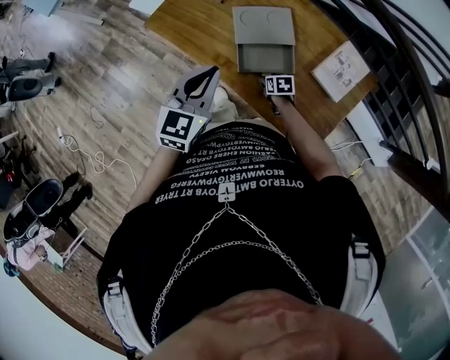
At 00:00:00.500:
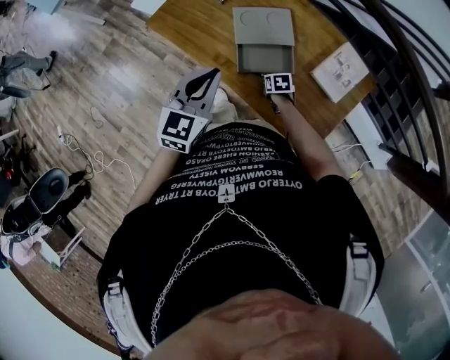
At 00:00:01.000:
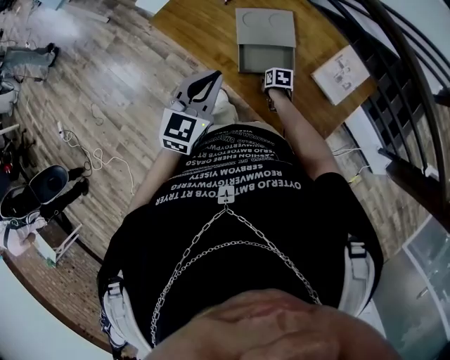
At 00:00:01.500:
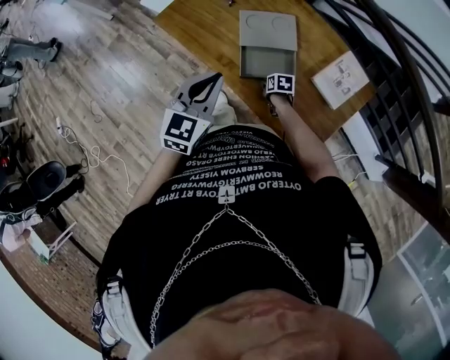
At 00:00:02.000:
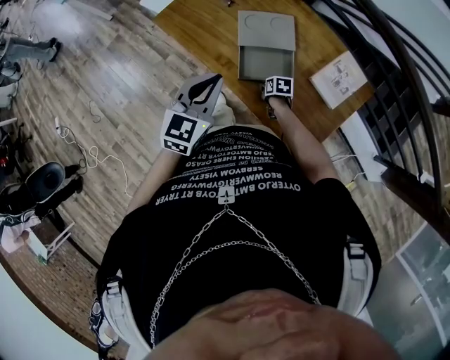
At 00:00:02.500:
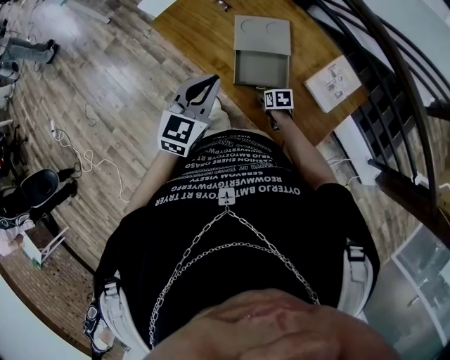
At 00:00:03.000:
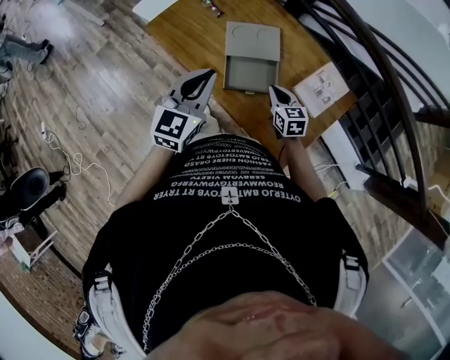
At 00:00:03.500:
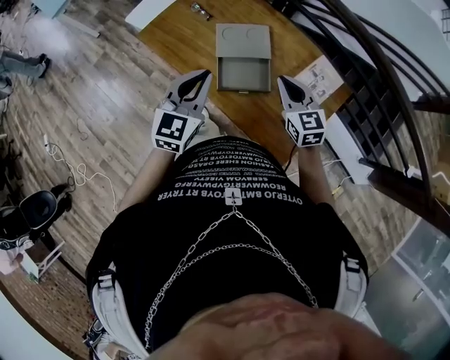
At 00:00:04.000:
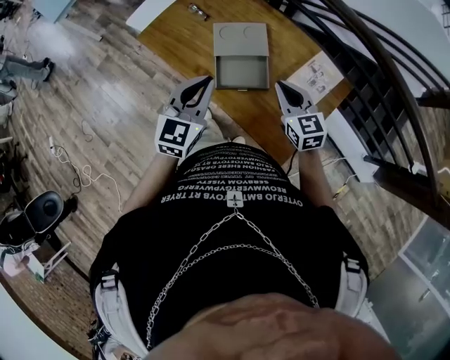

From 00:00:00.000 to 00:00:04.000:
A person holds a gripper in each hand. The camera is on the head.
From 00:00:00.000 to 00:00:02.000: The grippers move only a little.
From 00:00:02.000 to 00:00:04.000: The right gripper goes some 35 cm upward, tilts its fingers roughly 40 degrees upward, and closes up; the left gripper shifts roughly 5 cm to the right.

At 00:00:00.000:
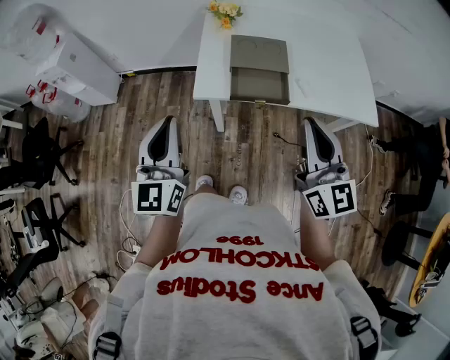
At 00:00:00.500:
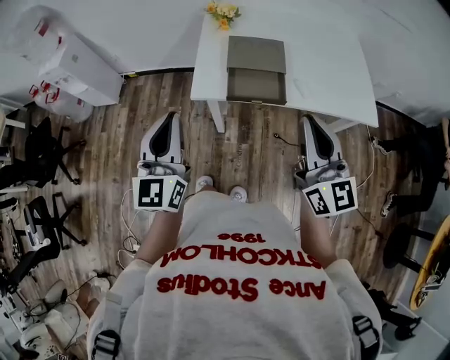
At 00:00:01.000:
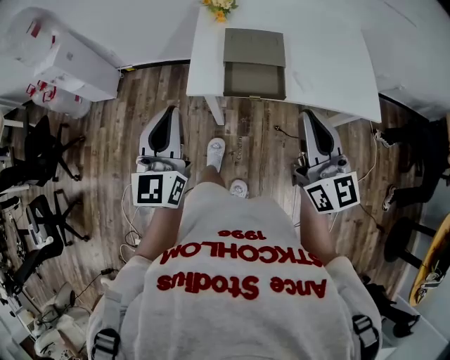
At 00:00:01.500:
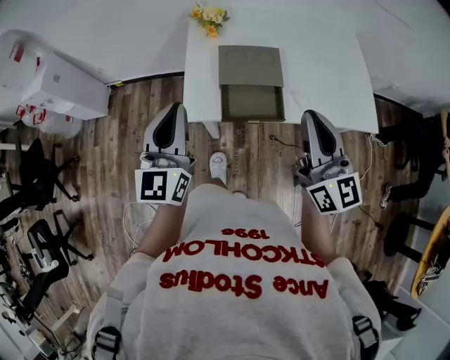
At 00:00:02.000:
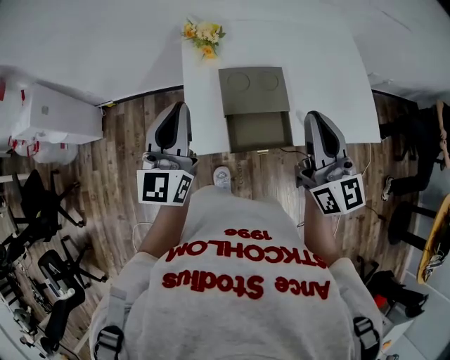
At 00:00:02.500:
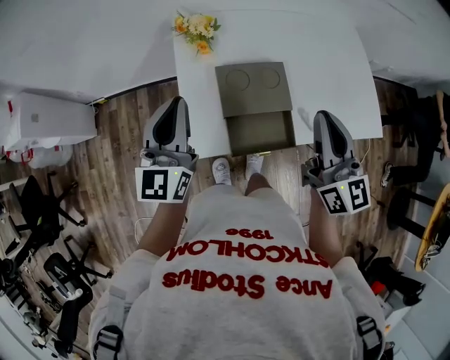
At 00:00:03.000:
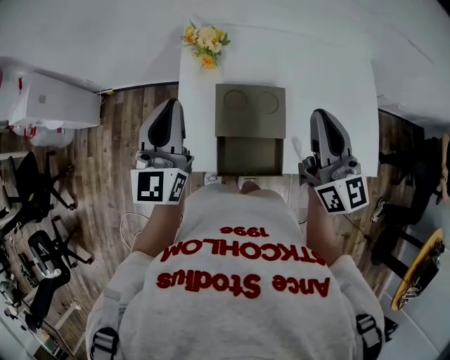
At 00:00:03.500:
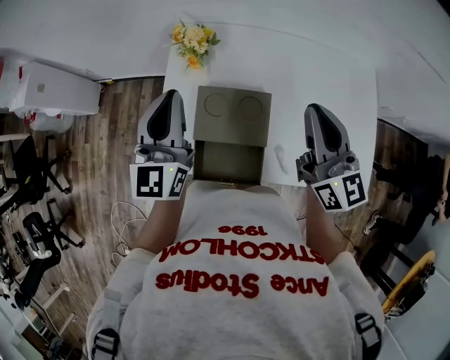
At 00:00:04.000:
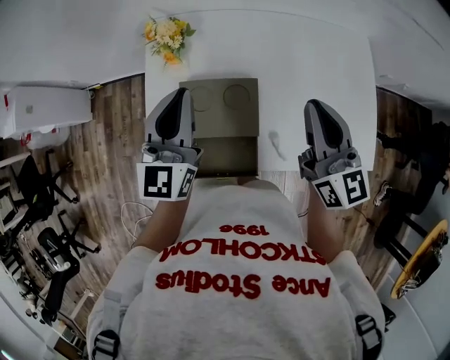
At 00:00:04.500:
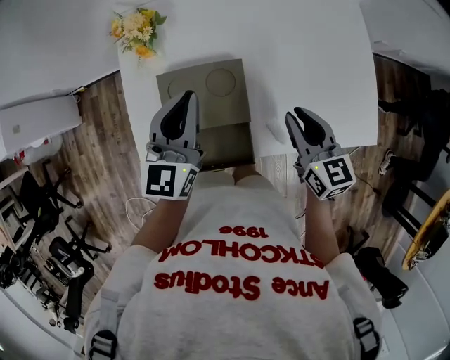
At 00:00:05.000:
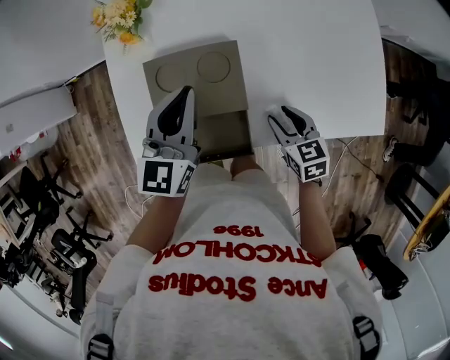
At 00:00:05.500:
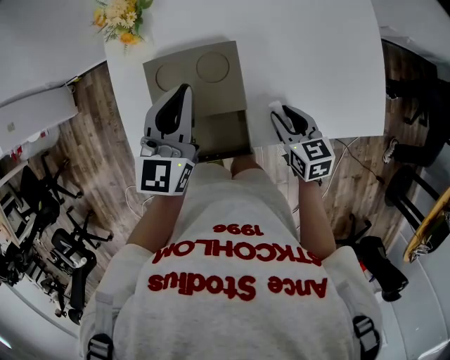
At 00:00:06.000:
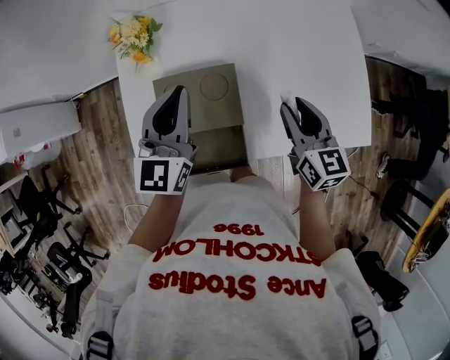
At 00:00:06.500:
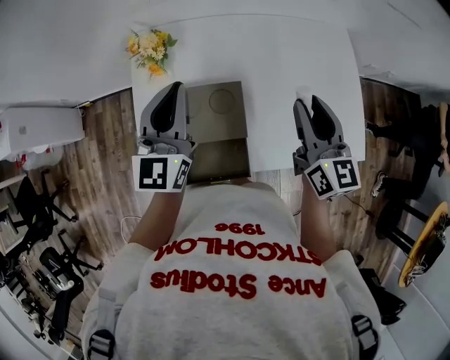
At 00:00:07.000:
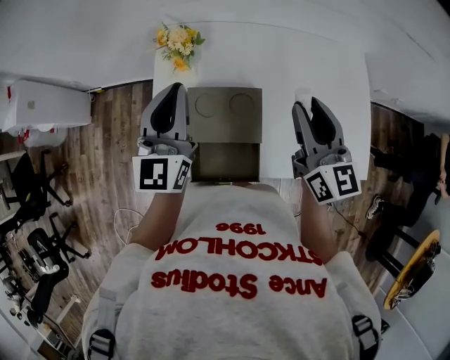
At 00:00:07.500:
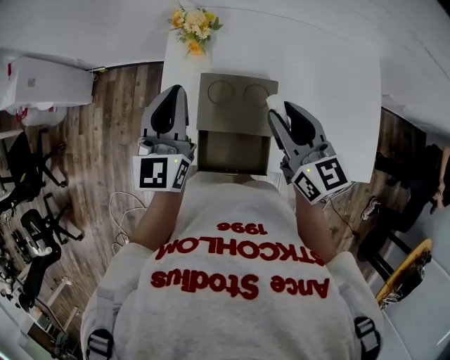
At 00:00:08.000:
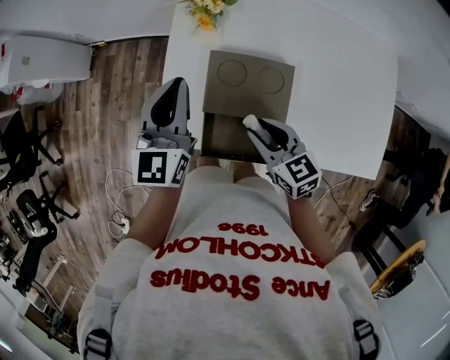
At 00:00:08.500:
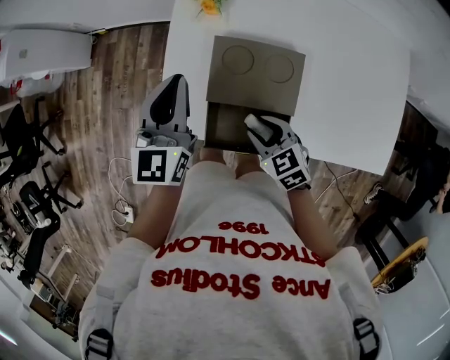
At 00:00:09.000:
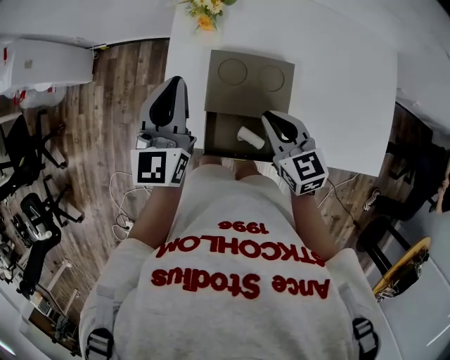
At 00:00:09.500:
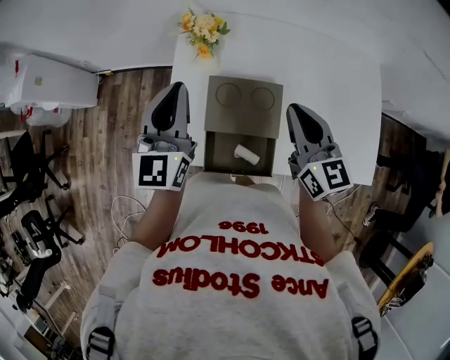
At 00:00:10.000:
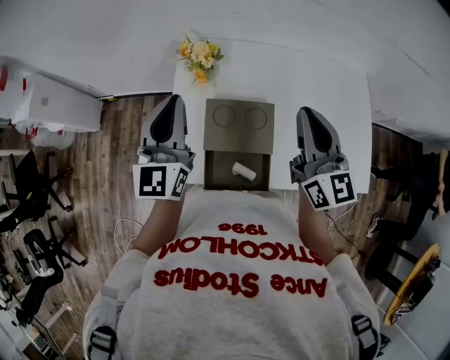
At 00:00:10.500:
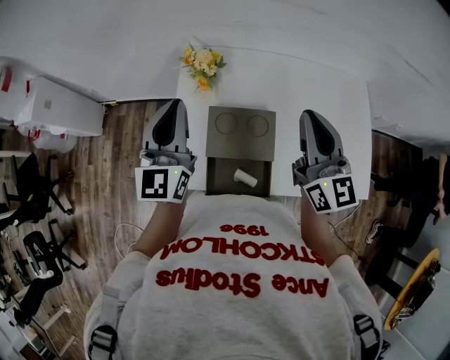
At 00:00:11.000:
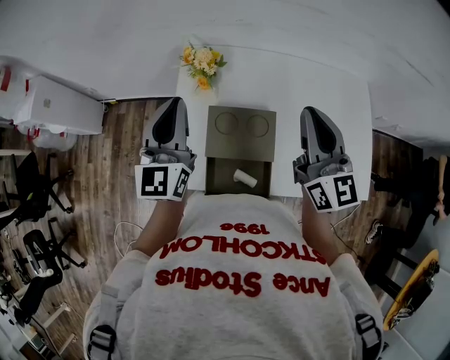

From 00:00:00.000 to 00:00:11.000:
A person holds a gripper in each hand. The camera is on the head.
From 00:00:00.000 to 00:00:02.000: Both grippers travel together forward, roughly 20 cm.
From 00:00:02.000 to 00:00:03.500: Both grippers move forward and to the right, approximately 15 cm.
From 00:00:03.500 to 00:00:05.500: The right gripper is displaced downward by some 30 cm, tips its fingers downward by about 50 degrees, and opens. Meanwhile the left gripper travels downward and to the right by approximately 15 cm, and rotates roughly 30 degrees.
From 00:00:05.500 to 00:00:07.500: The left gripper is displaced to the left and upward by some 15 cm, and rotates approximately 20 degrees. The right gripper travels upward, forward and to the left by roughly 25 cm, and rotates some 30 degrees.
From 00:00:07.500 to 00:00:09.000: The right gripper travels downward and to the left by roughly 10 cm, and closes its fingers.
From 00:00:09.000 to 00:00:11.000: The right gripper moves upward, some 20 cm, and tilts its fingers about 30 degrees upward, while the left gripper is displaced upward by about 10 cm.

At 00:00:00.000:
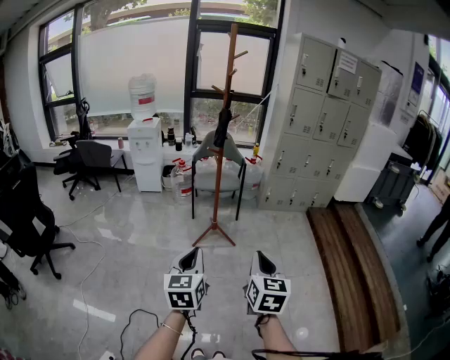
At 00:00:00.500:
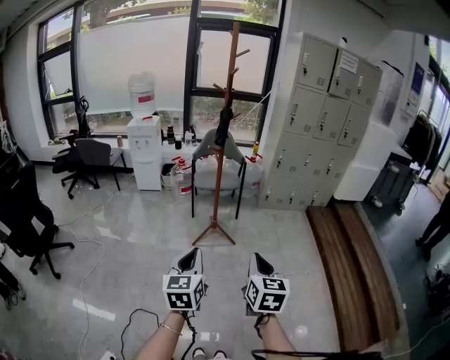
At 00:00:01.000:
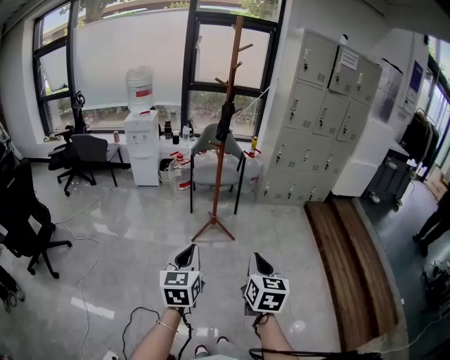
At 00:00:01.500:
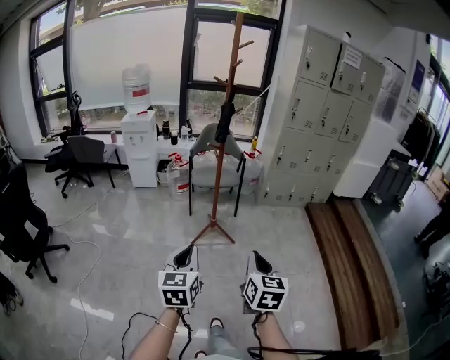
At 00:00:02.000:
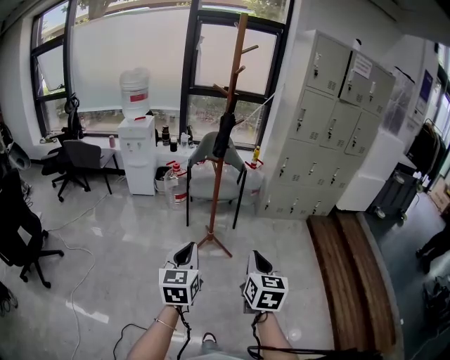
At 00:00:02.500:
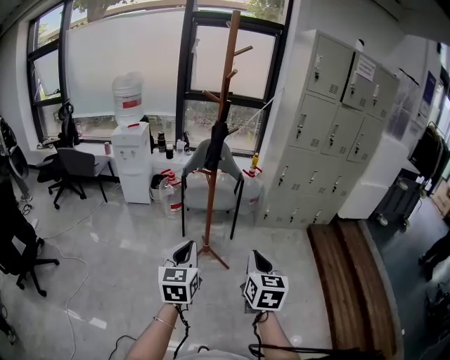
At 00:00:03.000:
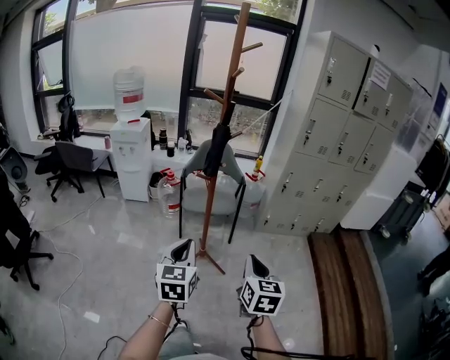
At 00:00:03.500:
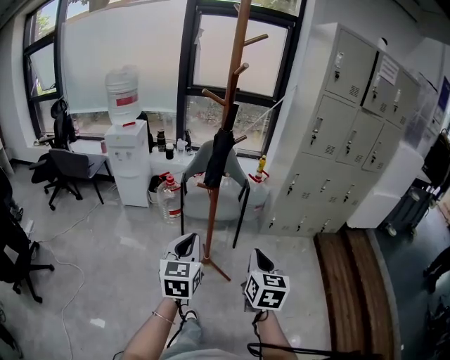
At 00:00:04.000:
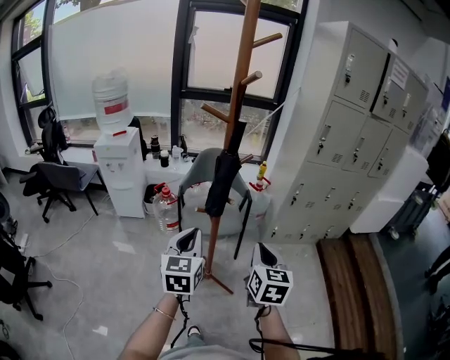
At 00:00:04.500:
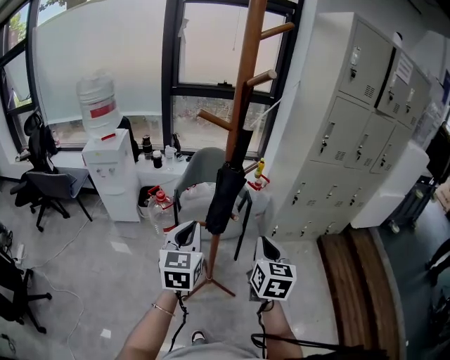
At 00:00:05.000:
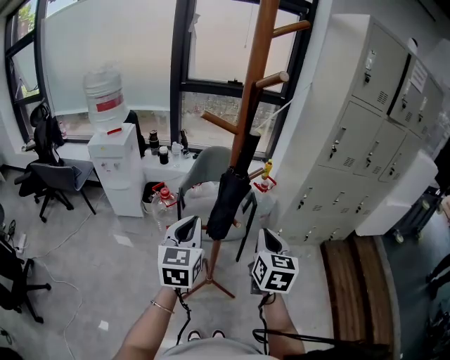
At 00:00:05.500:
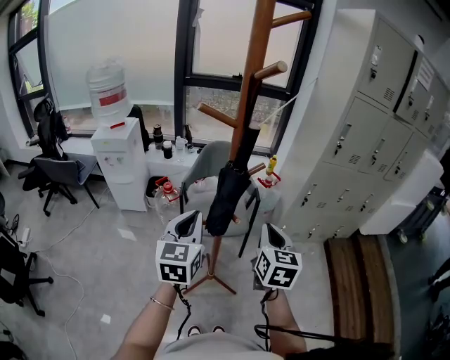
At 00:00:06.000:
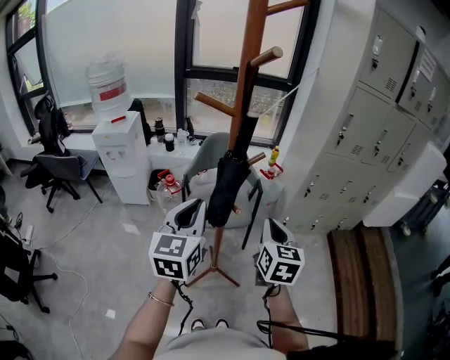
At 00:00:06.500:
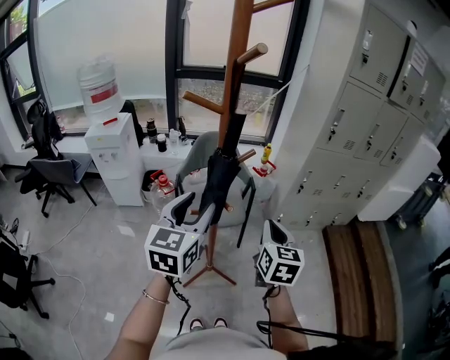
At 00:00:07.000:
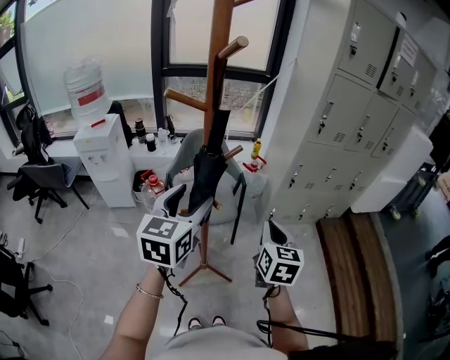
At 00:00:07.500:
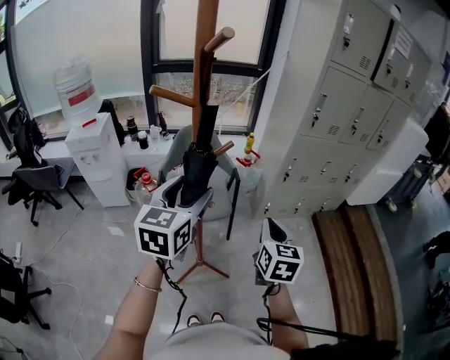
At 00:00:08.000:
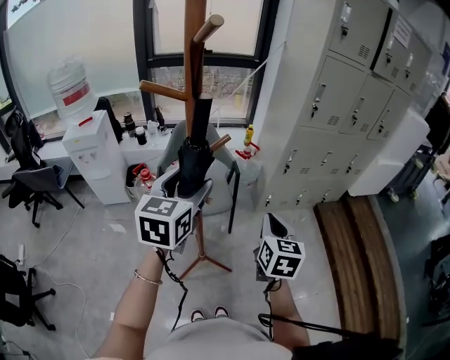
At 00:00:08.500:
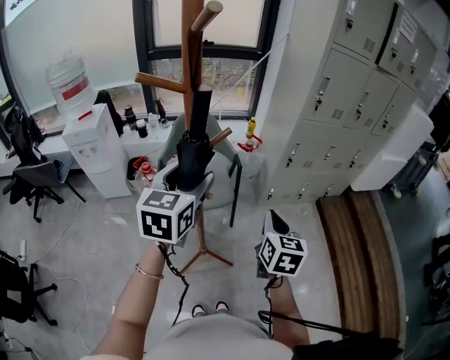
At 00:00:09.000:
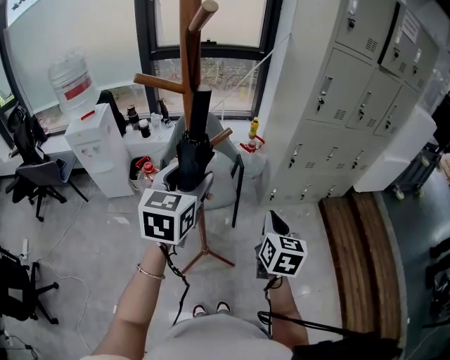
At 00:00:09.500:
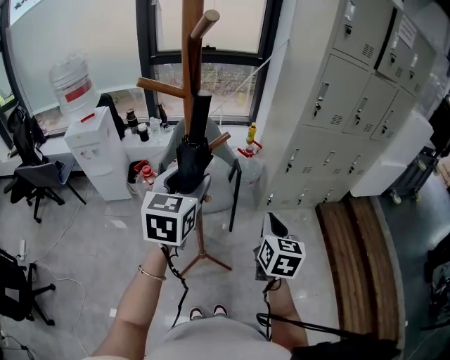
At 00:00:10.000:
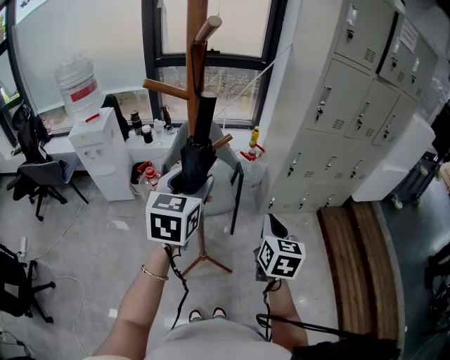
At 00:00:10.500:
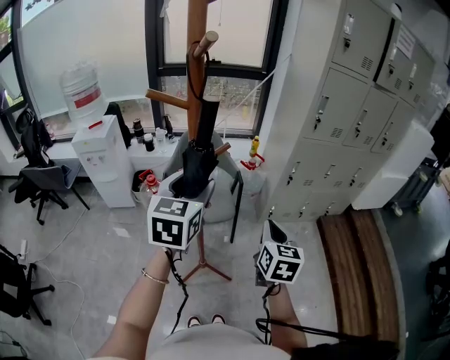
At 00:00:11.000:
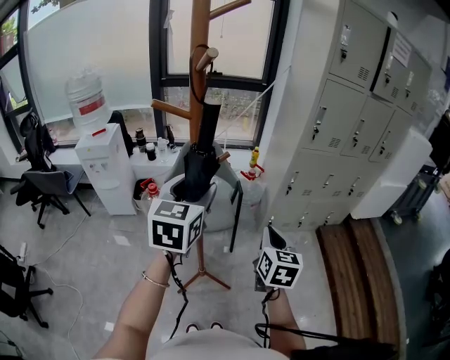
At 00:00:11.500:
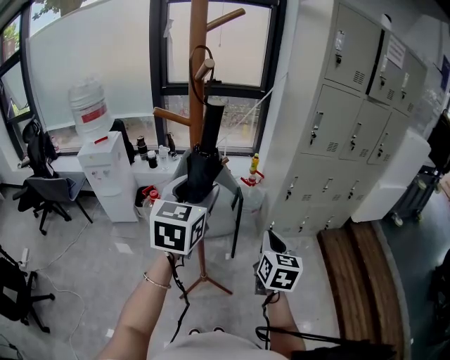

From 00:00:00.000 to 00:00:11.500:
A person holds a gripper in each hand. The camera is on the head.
From 00:00:00.000 to 00:00:02.000: Both grippers travel together forward, approximately 15 cm.
From 00:00:02.000 to 00:00:04.000: Both grippers are carried forward, roughly 40 cm.
From 00:00:04.000 to 00:00:06.000: The left gripper heads forward and upward, covering approximately 10 cm, while the right gripper moves forward, approximately 15 cm.
From 00:00:06.000 to 00:00:07.500: Both grippers travel together to the right, approximately 5 cm. The left gripper opens.
From 00:00:07.500 to 00:00:09.500: The grippers move only a little.
From 00:00:09.500 to 00:00:11.500: The left gripper moves upward, some 5 cm.
